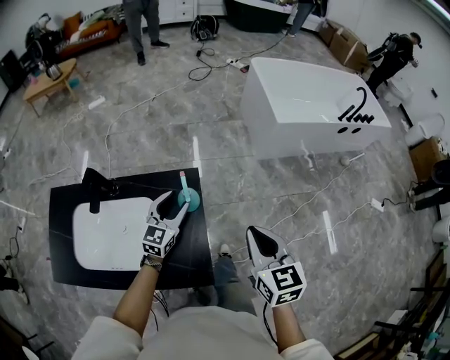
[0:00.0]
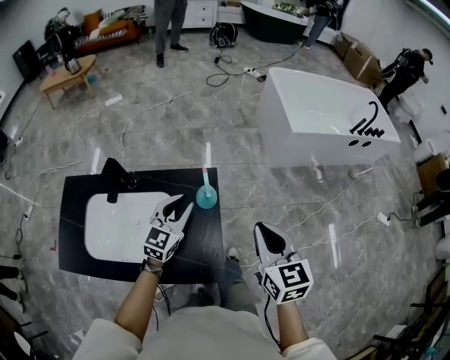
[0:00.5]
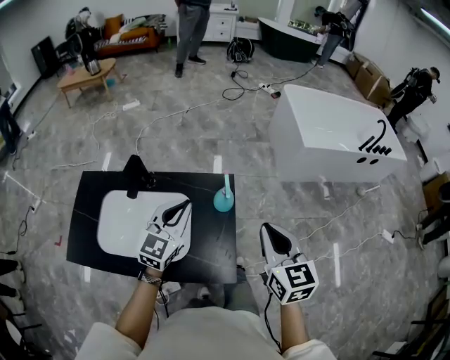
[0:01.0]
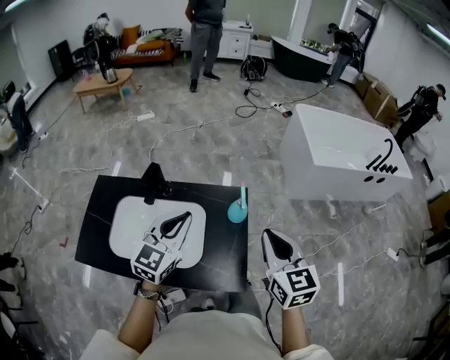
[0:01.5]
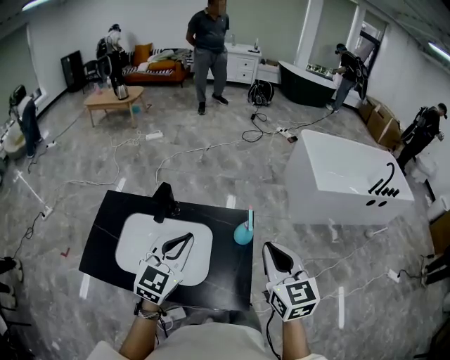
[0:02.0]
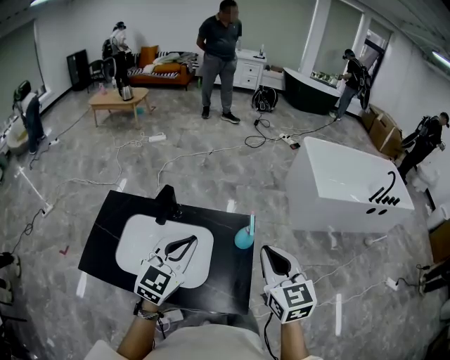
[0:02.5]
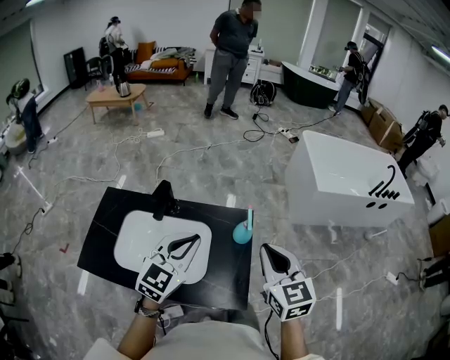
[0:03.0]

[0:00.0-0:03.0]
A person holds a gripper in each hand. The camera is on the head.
0:00.0 to 0:01.5: The left gripper heads upward, backward and to the left, covering about 25 cm, and closes its fingers; the right gripper heads to the left and upward, covering some 15 cm.
0:01.5 to 0:03.0: The grippers stay close to where they were, moving slightly.

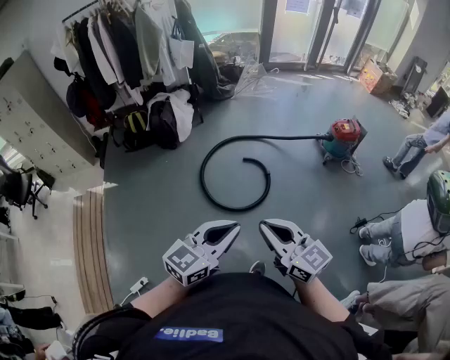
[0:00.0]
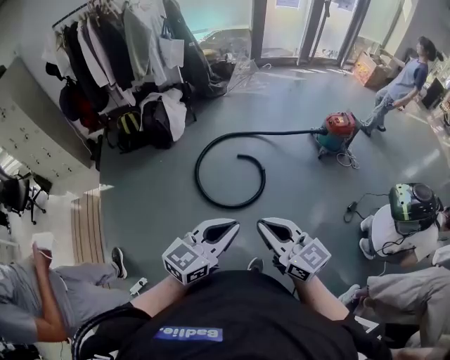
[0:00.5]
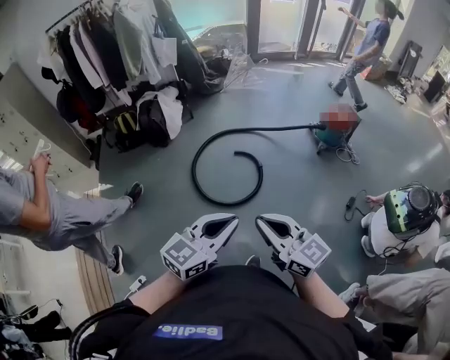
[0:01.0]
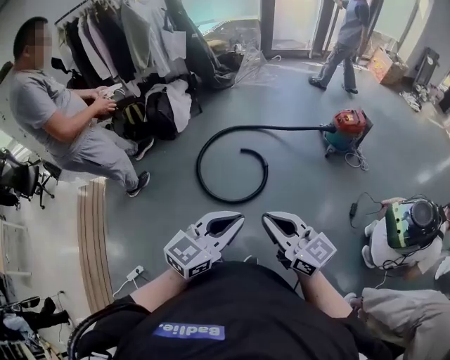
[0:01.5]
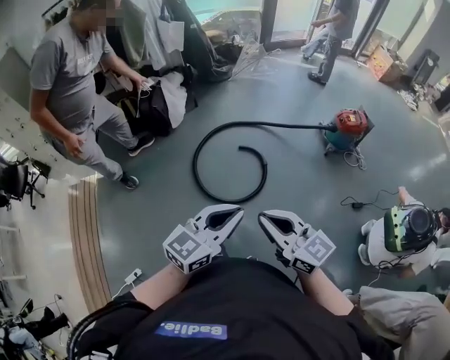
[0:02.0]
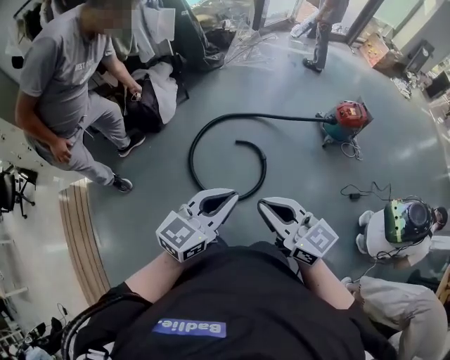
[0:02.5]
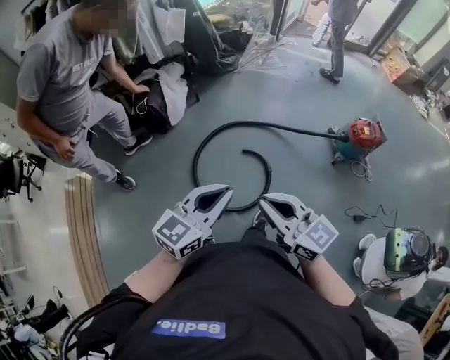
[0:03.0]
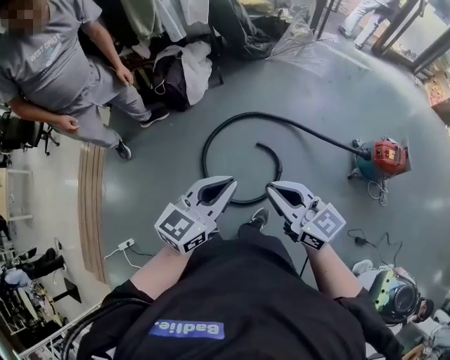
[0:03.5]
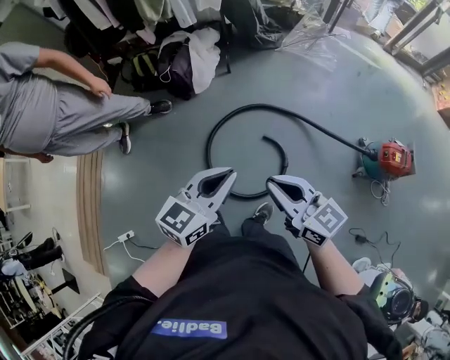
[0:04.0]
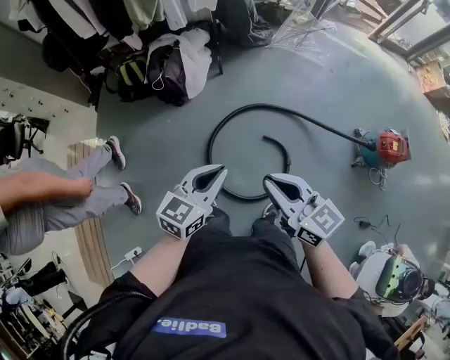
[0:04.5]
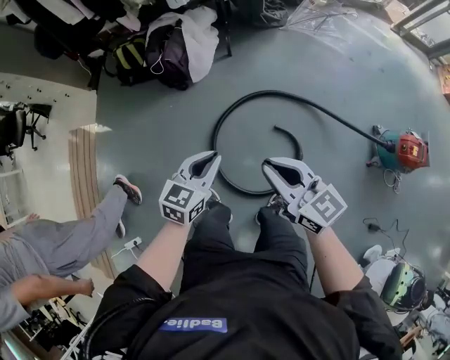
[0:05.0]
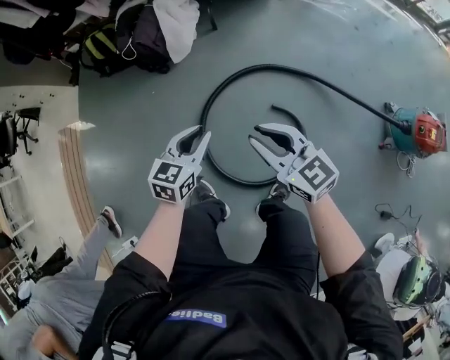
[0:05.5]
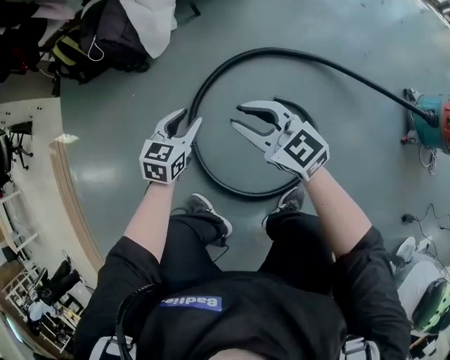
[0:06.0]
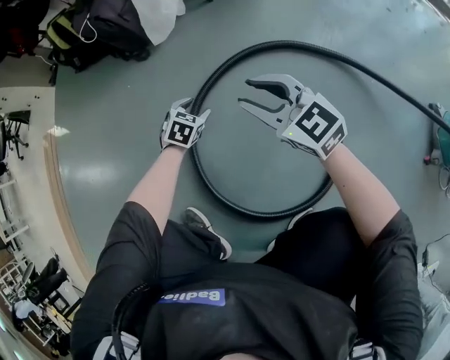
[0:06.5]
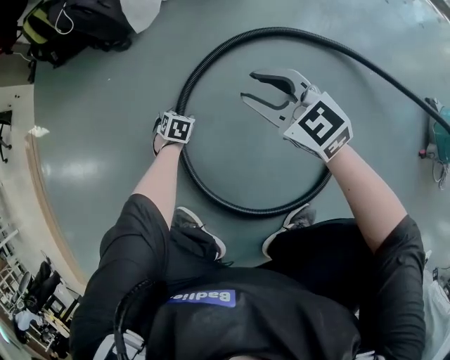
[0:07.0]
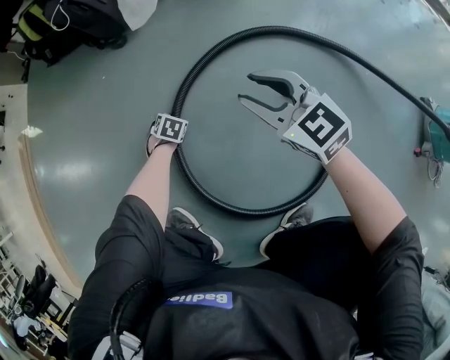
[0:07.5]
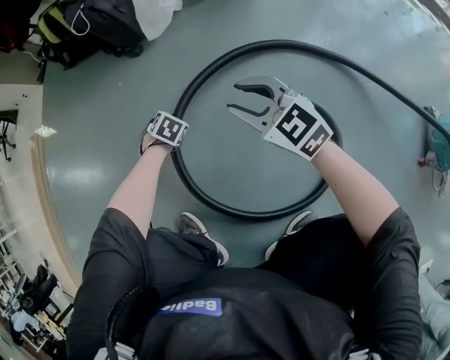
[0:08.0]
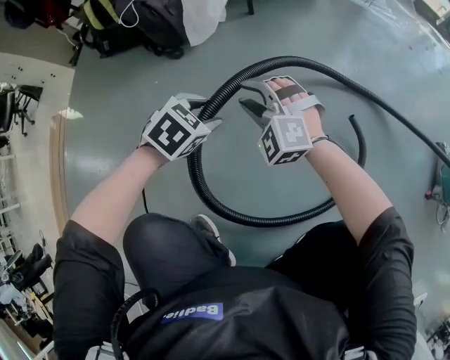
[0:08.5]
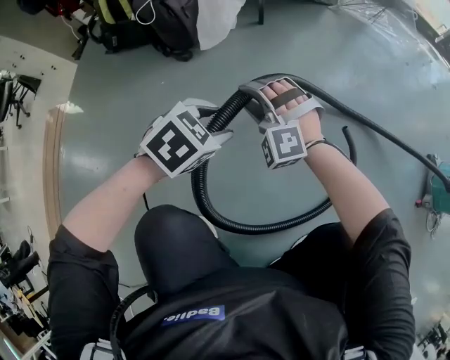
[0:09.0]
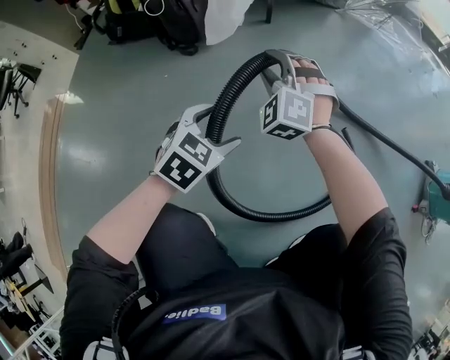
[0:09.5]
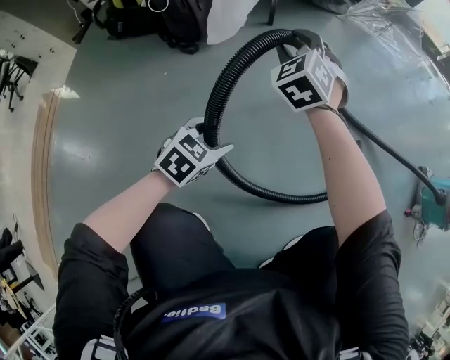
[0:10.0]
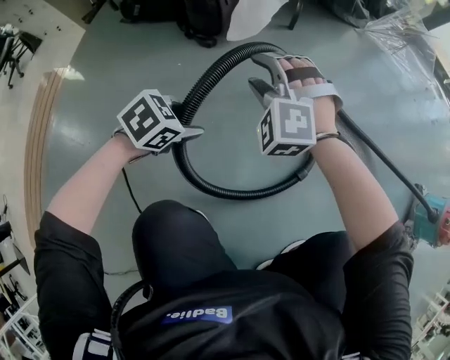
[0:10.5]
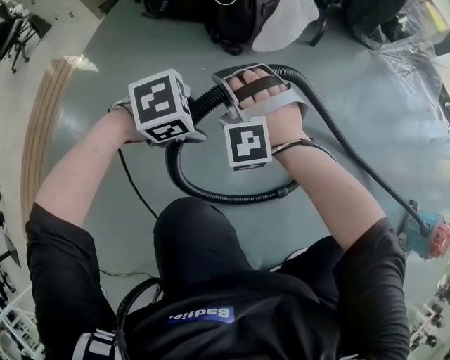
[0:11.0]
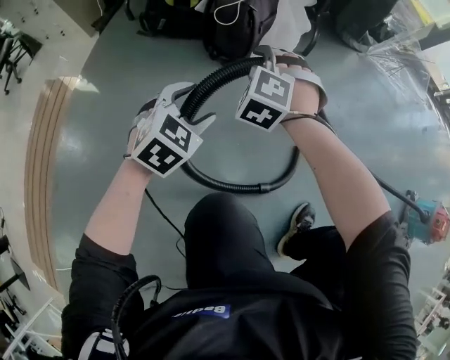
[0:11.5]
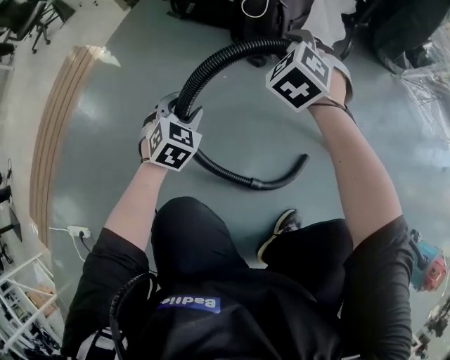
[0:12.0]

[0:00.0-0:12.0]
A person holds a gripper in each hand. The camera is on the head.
0:00.0 to 0:02.0: The grippers both shift forward and to the right by some 15 cm.
0:02.0 to 0:04.0: The grippers both shift forward by some 35 cm. The left gripper changes its angle by about 30 degrees.
0:04.0 to 0:06.0: Both grippers move downward and forward, some 60 cm. The left gripper turns by about 30 degrees, and opens, while the right gripper opens up.
0:06.0 to 0:08.0: The right gripper goes approximately 20 cm downward. The left gripper moves downward, roughly 35 cm, and angles its fingers downward, by roughly 40 degrees.
0:08.0 to 0:10.0: The left gripper moves upward, some 20 cm, and points its fingers approximately 30 degrees further upward. Meanwhile the right gripper ends up roughly 20 cm from where it was, and turns by some 50 degrees.
0:10.0 to 0:12.0: The right gripper ends up about 30 cm from where it was, and turns by approximately 30 degrees. The left gripper reaches roughly 10 cm upward, then returns, and rotates roughly 40 degrees.

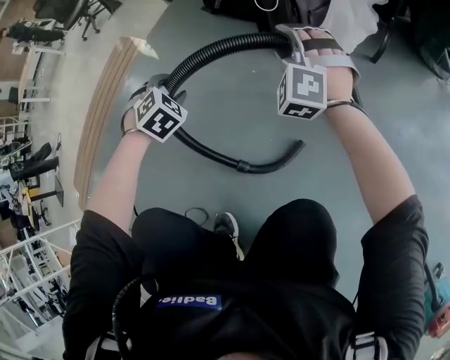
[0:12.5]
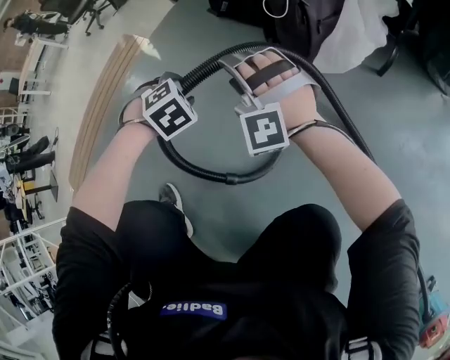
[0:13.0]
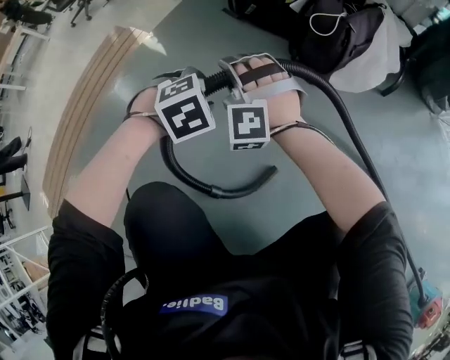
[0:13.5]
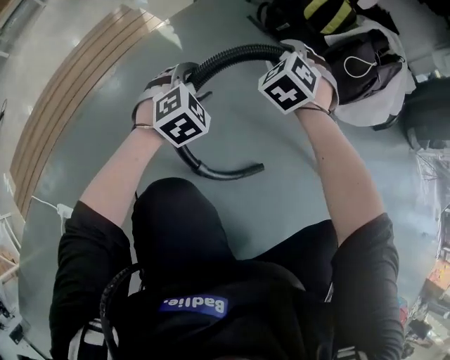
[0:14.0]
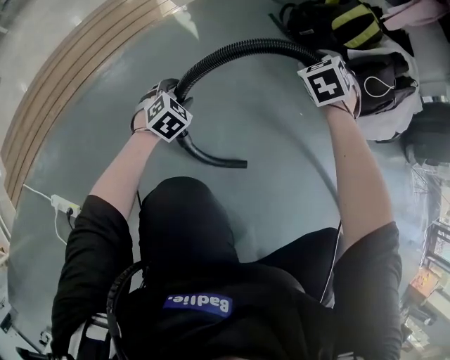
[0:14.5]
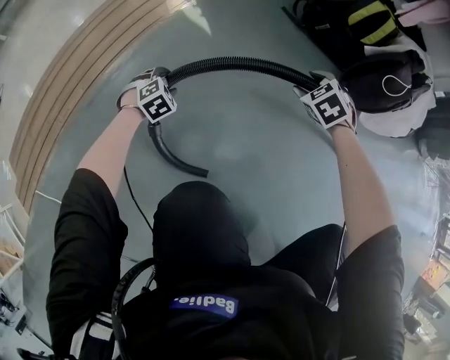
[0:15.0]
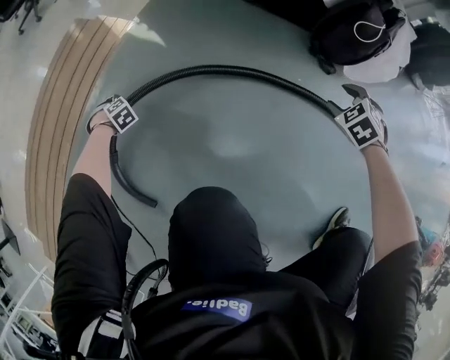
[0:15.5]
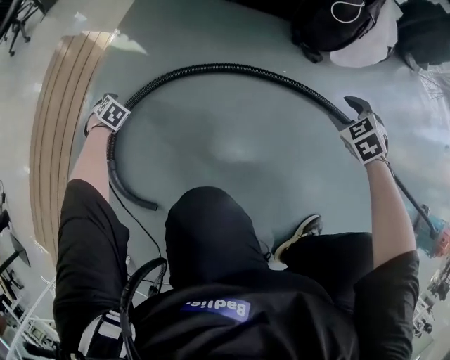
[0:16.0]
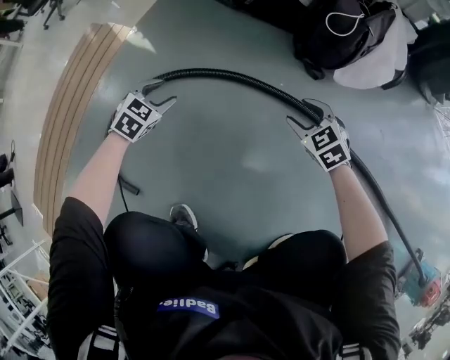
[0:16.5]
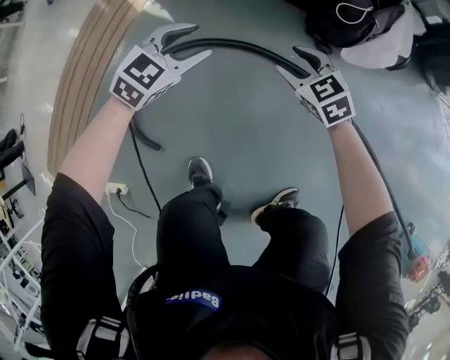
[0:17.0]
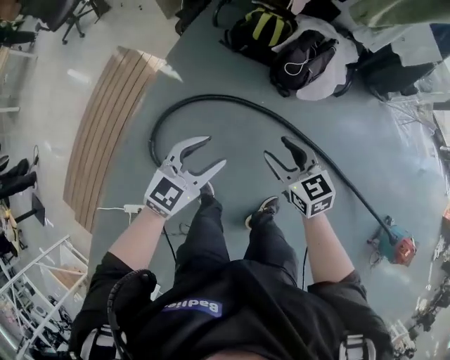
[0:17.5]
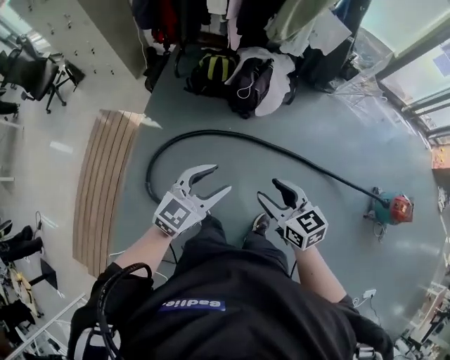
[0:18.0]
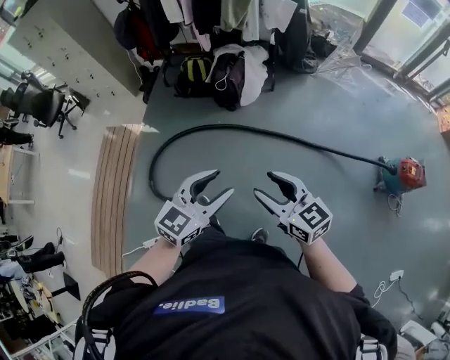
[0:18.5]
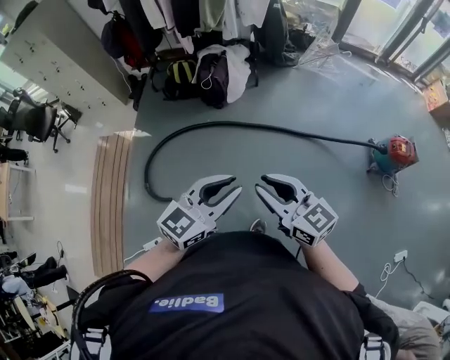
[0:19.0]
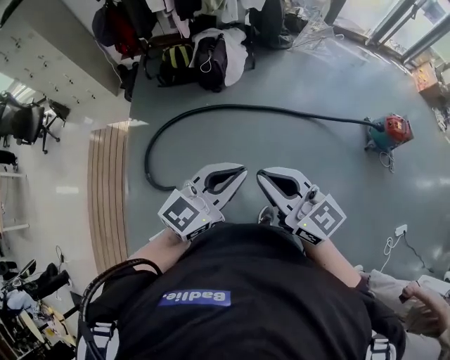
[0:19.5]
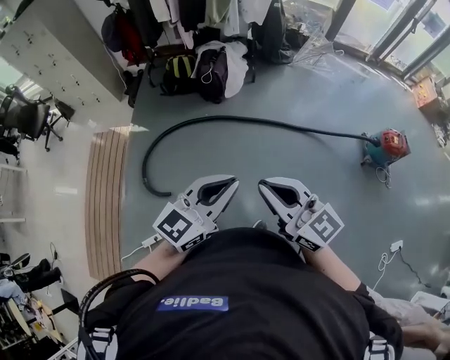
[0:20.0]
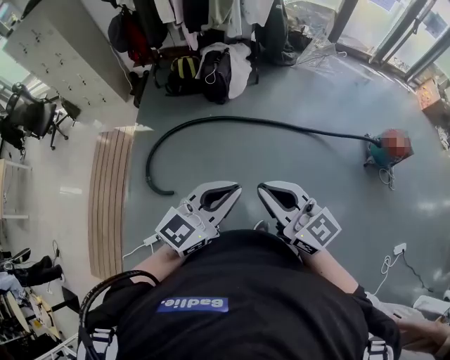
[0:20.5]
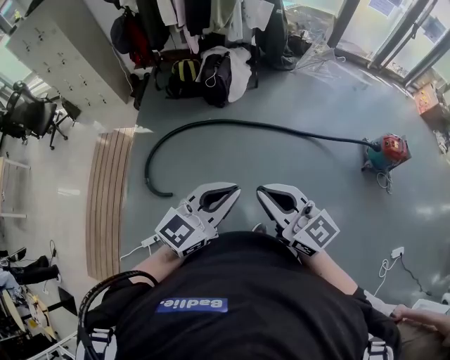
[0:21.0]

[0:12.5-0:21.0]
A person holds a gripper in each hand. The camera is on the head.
0:12.5 to 0:14.5: The left gripper moves about 40 cm, and rotates roughly 30 degrees; the right gripper changes place by approximately 35 cm, and changes its angle by roughly 40 degrees.
0:14.5 to 0:16.5: The right gripper shifts by about 25 cm, and changes its angle by approximately 20 degrees. The left gripper moves some 15 cm downward and comes back, and rotates about 20 degrees.
0:16.5 to 0:19.0: Both grippers are carried roughly 60 cm. The grippers both shift upward by roughly 90 cm. The left gripper angles its fingers upward, by about 40 degrees, and closes. Meanwhile the right gripper angles its fingers upward, by approximately 40 degrees, and closes up.
0:19.0 to 0:21.0: Both grippers travel together backward and to the left, roughly 15 cm. The right gripper closes its fingers.

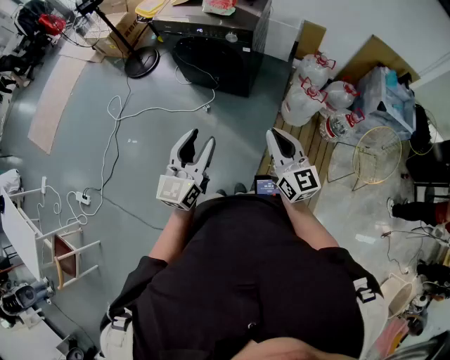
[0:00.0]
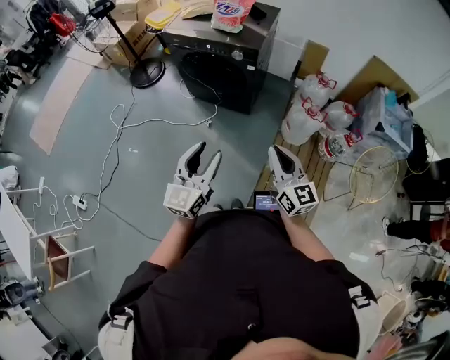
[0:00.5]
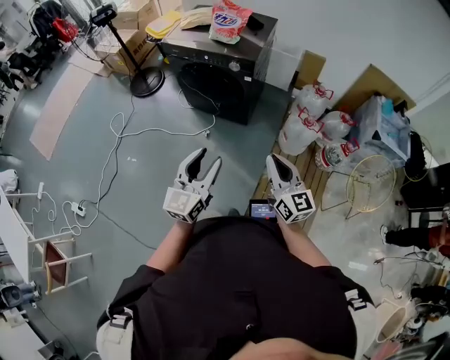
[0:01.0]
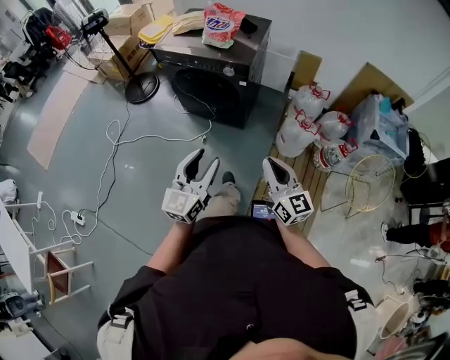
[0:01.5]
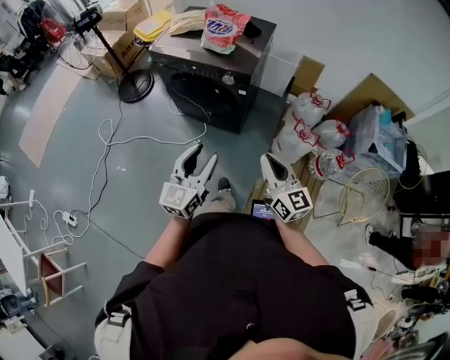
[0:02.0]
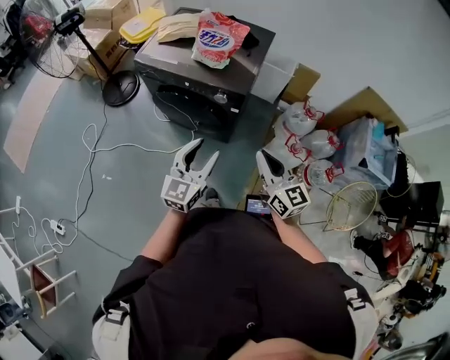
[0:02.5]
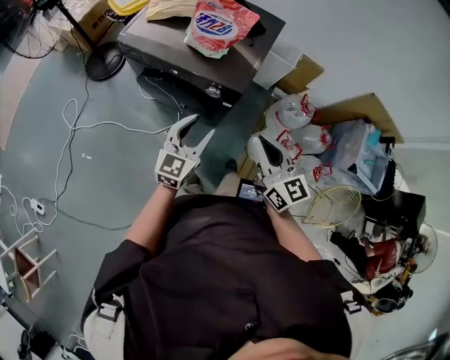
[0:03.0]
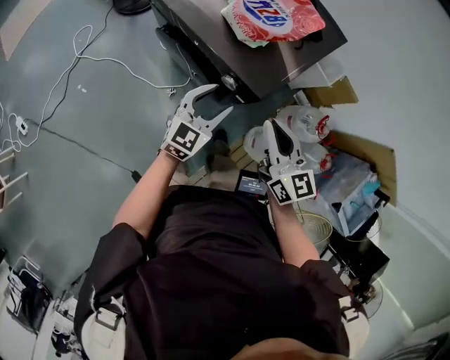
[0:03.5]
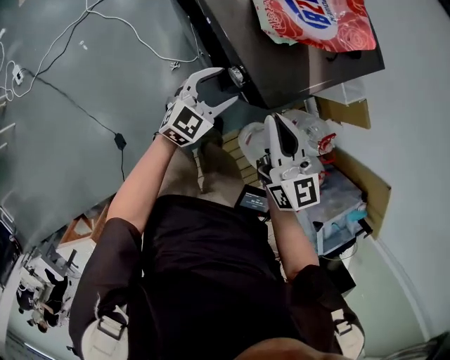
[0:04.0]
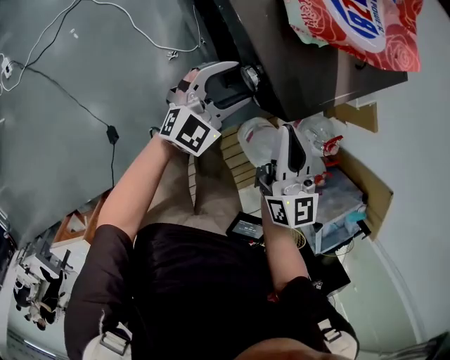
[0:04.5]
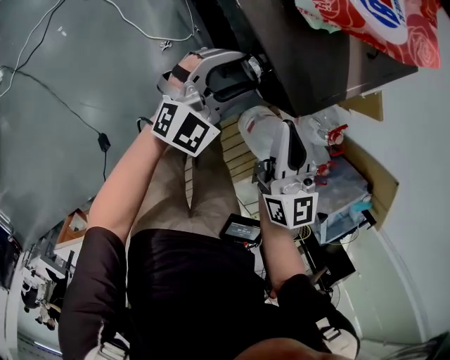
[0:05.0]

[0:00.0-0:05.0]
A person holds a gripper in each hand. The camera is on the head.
0:00.0 to 0:02.5: Both grippers travel together forward, about 30 cm.
0:02.5 to 0:05.0: Both grippers move forward and downward, roughly 35 cm. The right gripper rotates about 20 degrees. The left gripper rotates roughly 30 degrees.
